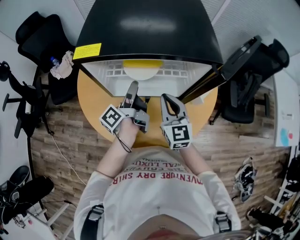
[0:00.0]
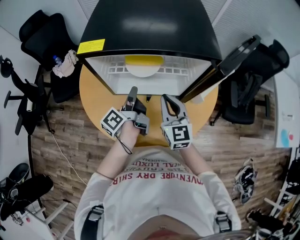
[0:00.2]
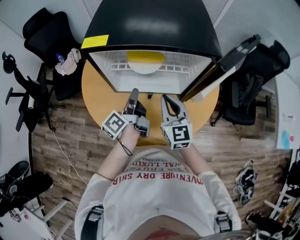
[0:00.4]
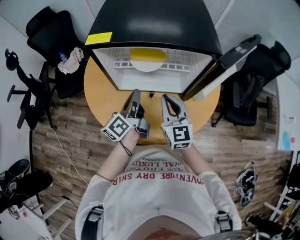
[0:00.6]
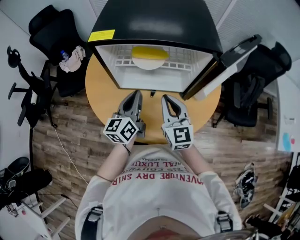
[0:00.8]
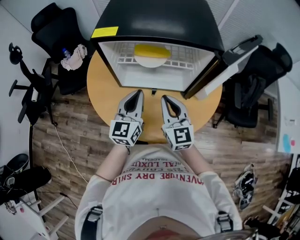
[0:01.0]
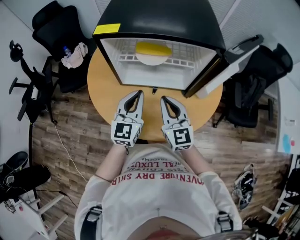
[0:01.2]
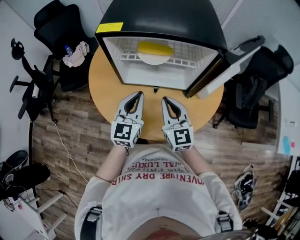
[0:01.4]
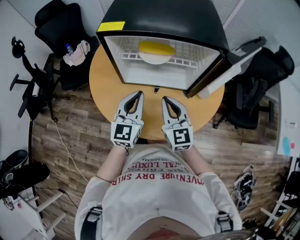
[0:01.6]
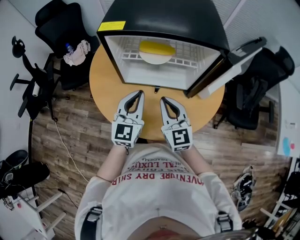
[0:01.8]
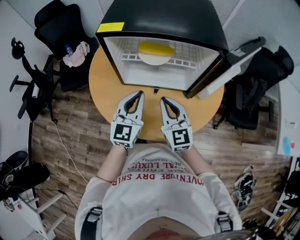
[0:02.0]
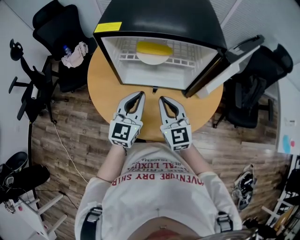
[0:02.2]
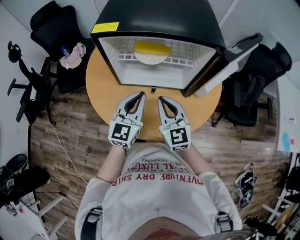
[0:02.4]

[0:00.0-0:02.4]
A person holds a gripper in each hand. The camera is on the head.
0:00.0 to 0:01.2: The right gripper moves some 10 cm.

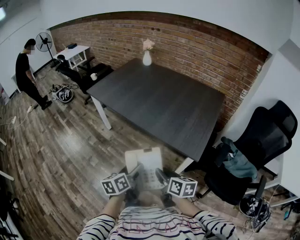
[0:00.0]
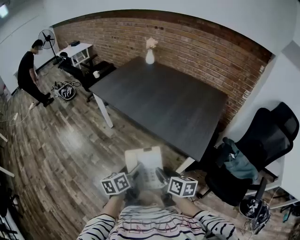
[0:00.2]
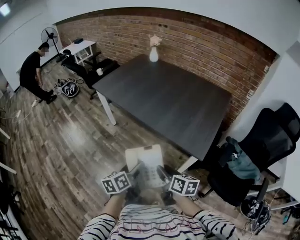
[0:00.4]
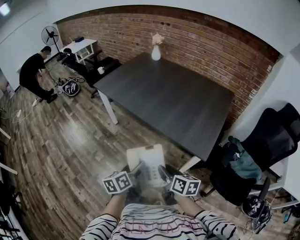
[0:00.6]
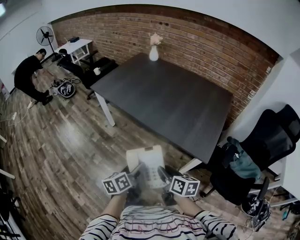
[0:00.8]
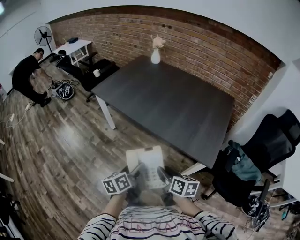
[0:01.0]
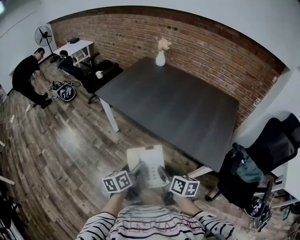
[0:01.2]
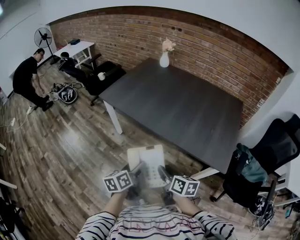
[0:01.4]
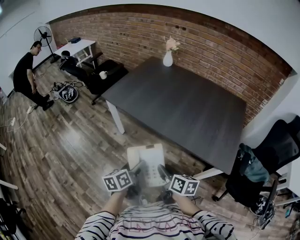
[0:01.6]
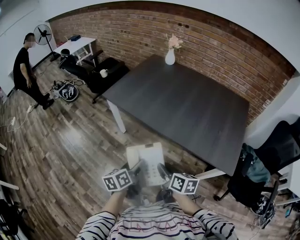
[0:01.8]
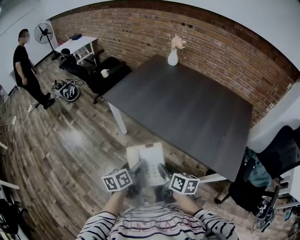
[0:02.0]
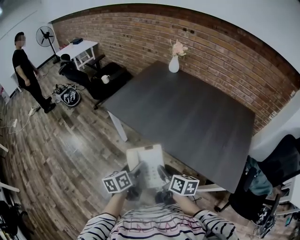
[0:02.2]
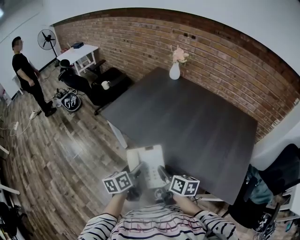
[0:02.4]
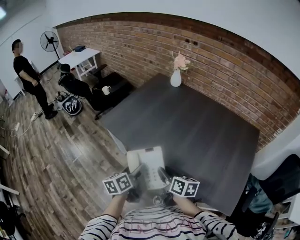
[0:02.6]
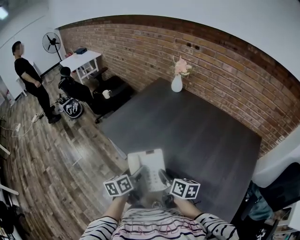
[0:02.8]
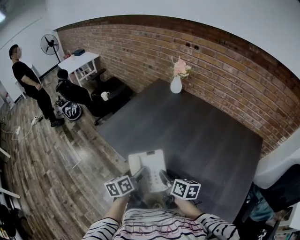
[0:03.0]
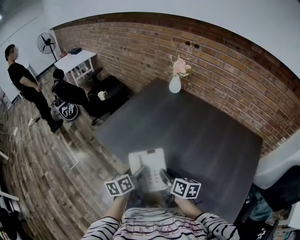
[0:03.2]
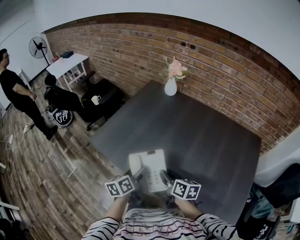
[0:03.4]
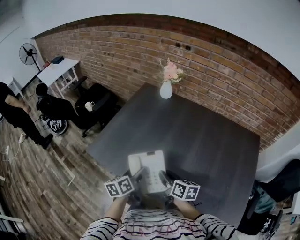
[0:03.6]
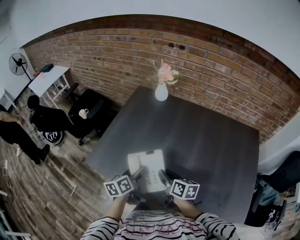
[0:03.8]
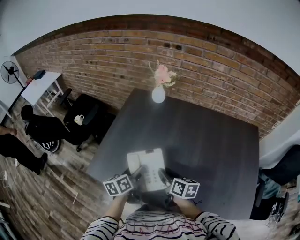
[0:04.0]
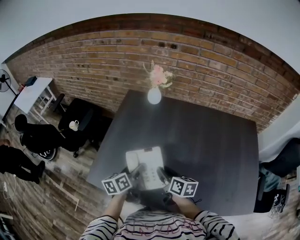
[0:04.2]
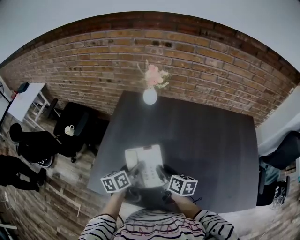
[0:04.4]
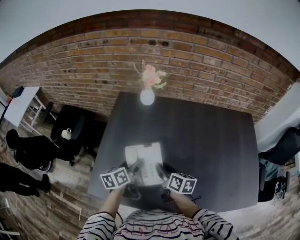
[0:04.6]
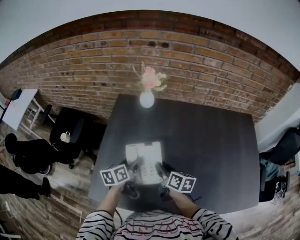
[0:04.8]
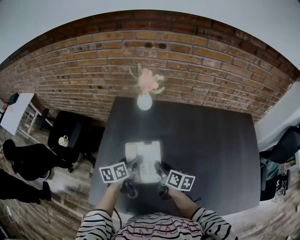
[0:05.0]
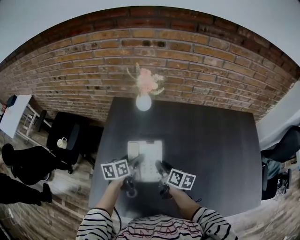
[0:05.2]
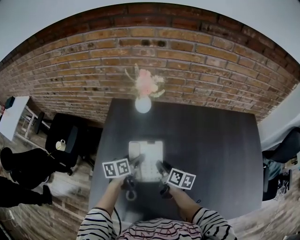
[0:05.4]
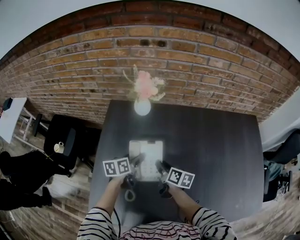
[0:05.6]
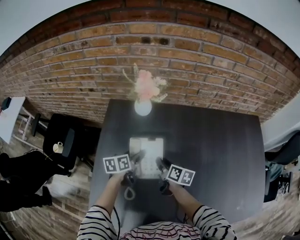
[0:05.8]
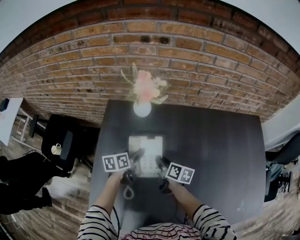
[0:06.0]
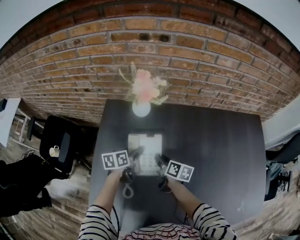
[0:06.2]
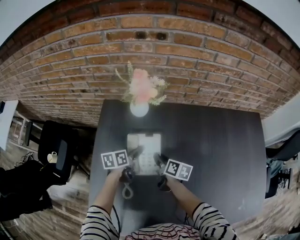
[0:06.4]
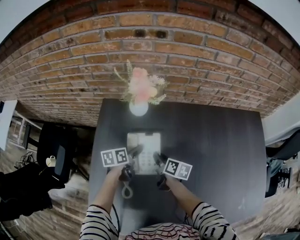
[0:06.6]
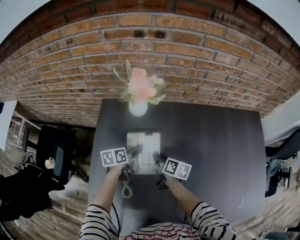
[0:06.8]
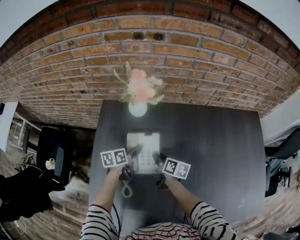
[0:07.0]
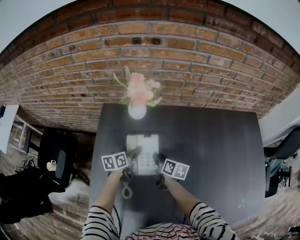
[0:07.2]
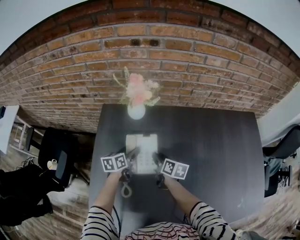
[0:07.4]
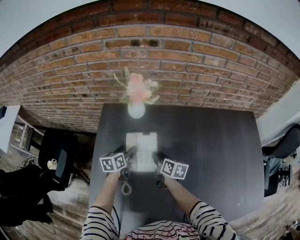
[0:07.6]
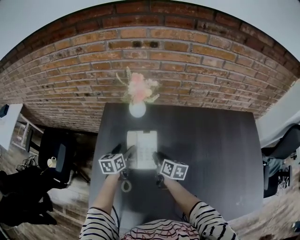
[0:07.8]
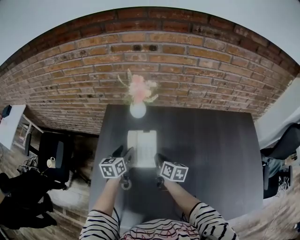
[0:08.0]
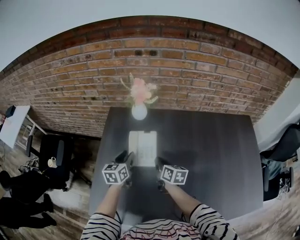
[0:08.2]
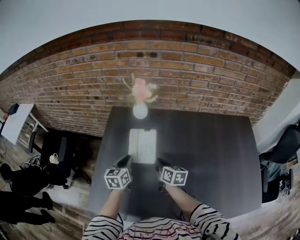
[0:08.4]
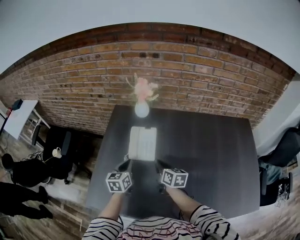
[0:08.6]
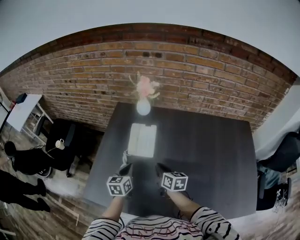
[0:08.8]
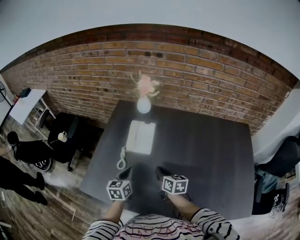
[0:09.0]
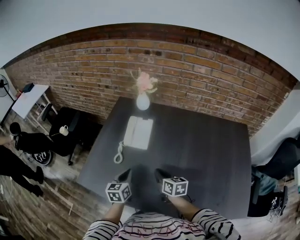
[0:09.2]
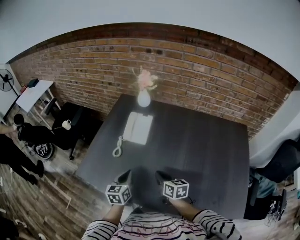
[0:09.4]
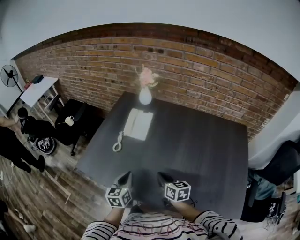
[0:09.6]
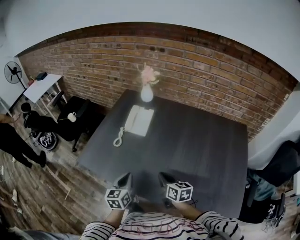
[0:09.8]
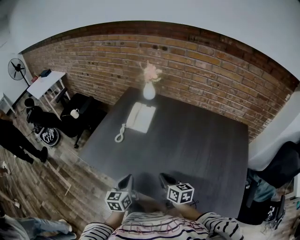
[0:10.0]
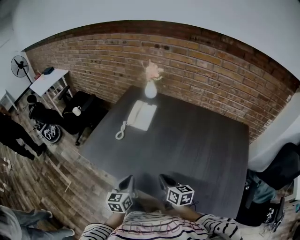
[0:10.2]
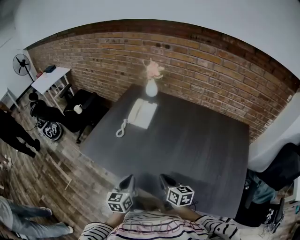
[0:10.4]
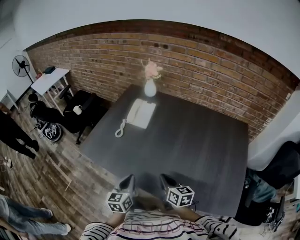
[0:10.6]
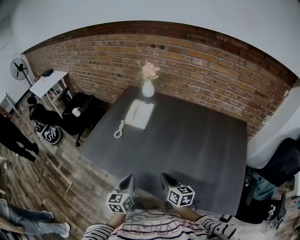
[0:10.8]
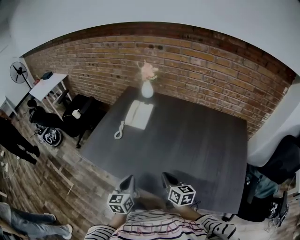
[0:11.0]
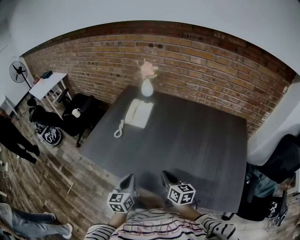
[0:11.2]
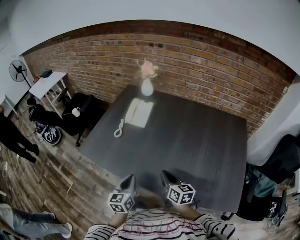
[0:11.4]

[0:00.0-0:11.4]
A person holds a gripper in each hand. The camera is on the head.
0:00.0 to 0:01.4: The two grippers go roughly 25 cm to the left and forward.
0:01.4 to 0:02.8: Both grippers move forward, about 35 cm.
0:02.8 to 0:04.2: The grippers both shift forward by about 30 cm. The left gripper turns by approximately 20 degrees. The right gripper turns by roughly 20 degrees.
0:04.2 to 0:05.6: The left gripper shifts some 25 cm forward, and swivels approximately 20 degrees. Meanwhile the right gripper goes about 25 cm forward and downward.
0:05.6 to 0:07.2: Both grippers travel together forward, roughly 10 cm.
0:07.2 to 0:08.6: The grippers both shift backward and upward by some 20 cm. The right gripper closes; the left gripper turns by approximately 30 degrees, and closes up.
0:08.6 to 0:10.0: Both grippers travel together backward, roughly 35 cm. The right gripper swivels roughly 20 degrees.
0:10.0 to 0:11.4: The right gripper ends up approximately 5 cm from where it was; the left gripper shifts approximately 5 cm backward.

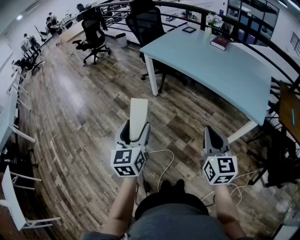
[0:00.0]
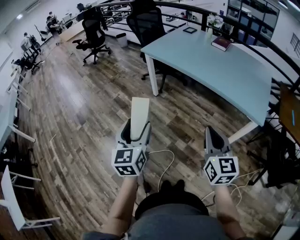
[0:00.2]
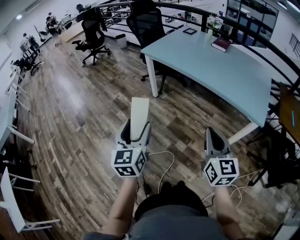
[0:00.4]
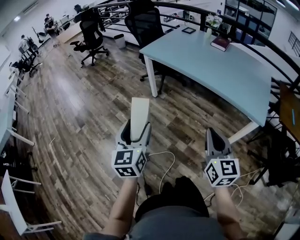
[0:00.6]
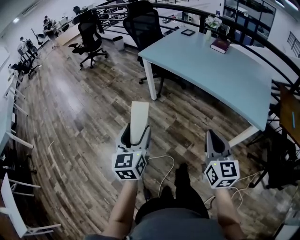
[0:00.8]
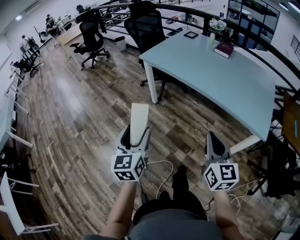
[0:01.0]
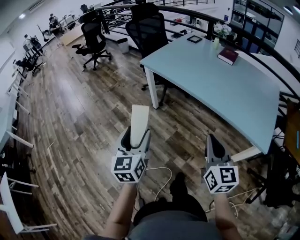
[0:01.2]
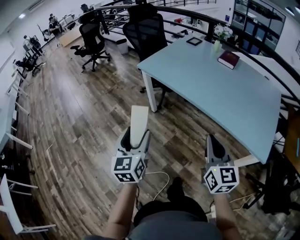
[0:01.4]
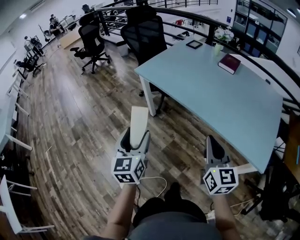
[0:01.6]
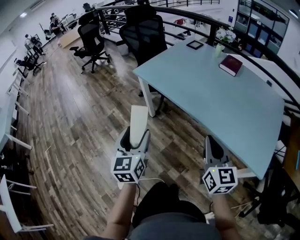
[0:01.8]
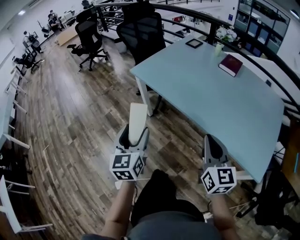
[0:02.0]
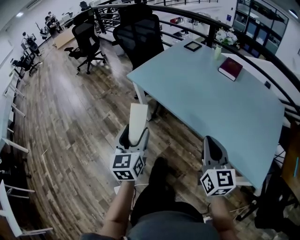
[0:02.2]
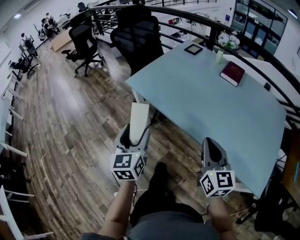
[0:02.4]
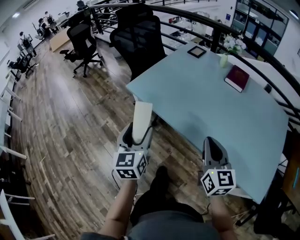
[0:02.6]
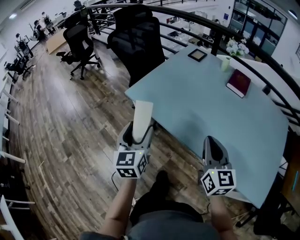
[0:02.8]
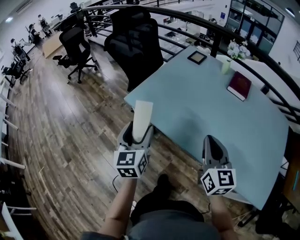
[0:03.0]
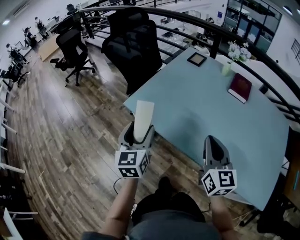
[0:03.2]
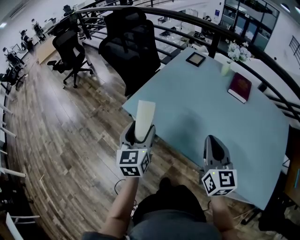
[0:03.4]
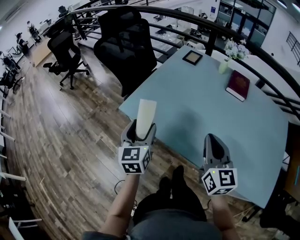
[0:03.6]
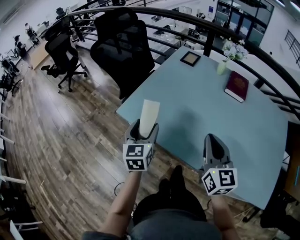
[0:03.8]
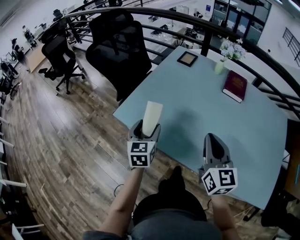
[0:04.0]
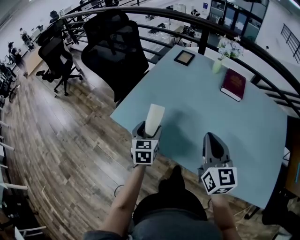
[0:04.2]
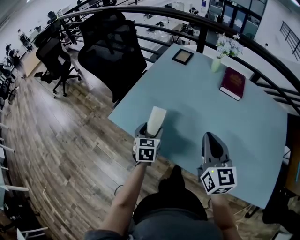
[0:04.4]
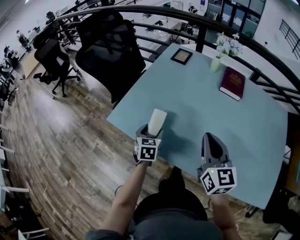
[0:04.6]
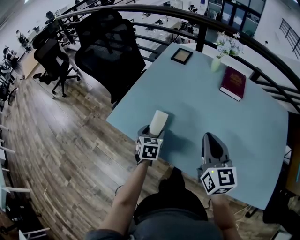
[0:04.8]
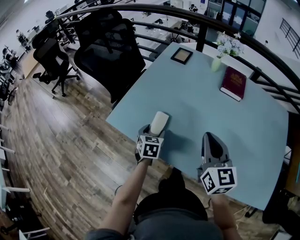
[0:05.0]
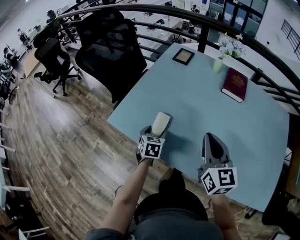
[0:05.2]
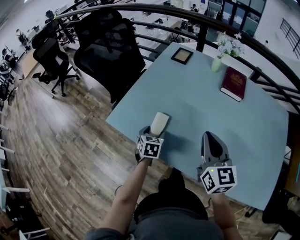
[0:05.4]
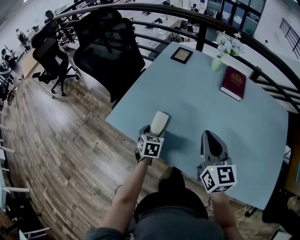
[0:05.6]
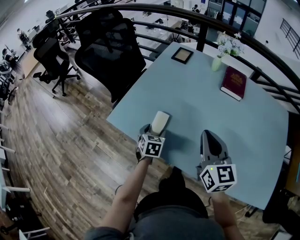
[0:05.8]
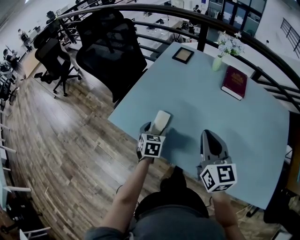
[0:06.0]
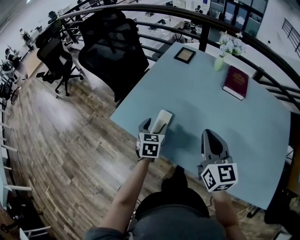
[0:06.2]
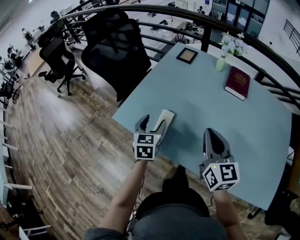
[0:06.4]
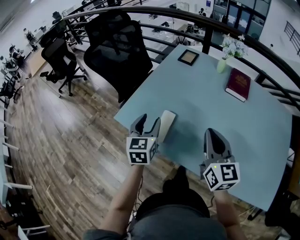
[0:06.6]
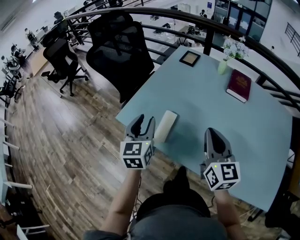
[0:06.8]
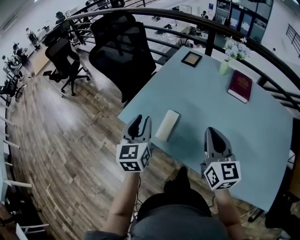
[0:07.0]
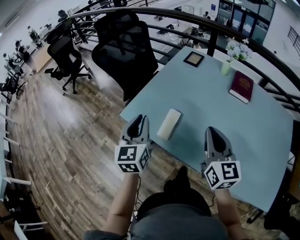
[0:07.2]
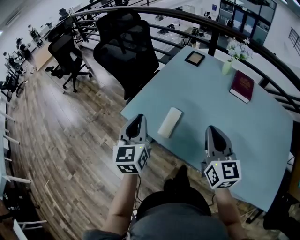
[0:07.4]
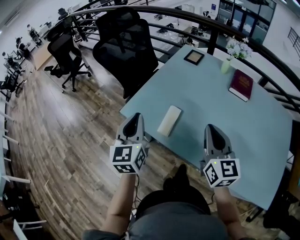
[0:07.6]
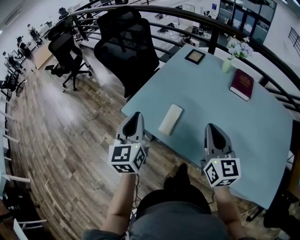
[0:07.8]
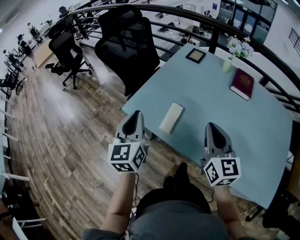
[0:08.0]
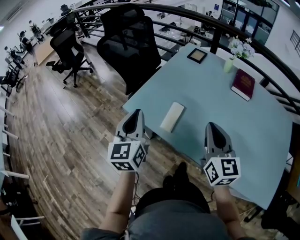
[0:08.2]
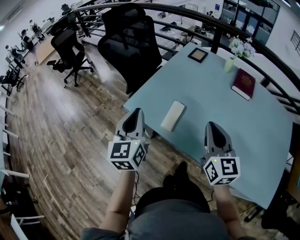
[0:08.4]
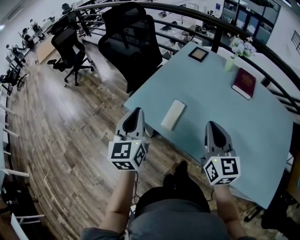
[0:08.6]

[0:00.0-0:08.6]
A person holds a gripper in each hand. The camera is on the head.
0:00.0 to 0:01.4: Both grippers move forward, some 20 cm.
0:01.4 to 0:02.8: The grippers both shift forward by about 30 cm.
0:02.8 to 0:04.4: The left gripper shifts some 25 cm forward and downward, and swivels approximately 30 degrees. The right gripper is displaced forward by approximately 15 cm.
0:04.4 to 0:05.8: The left gripper moves downward, approximately 5 cm.
0:05.8 to 0:07.2: The left gripper heads upward and to the left, covering approximately 25 cm, points its fingers roughly 40 degrees further upward, and closes.
0:07.2 to 0:08.6: The left gripper ends up some 5 cm from where it was.

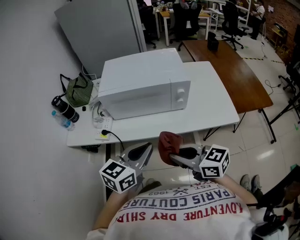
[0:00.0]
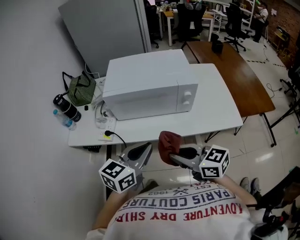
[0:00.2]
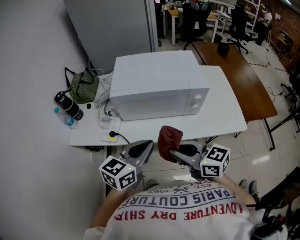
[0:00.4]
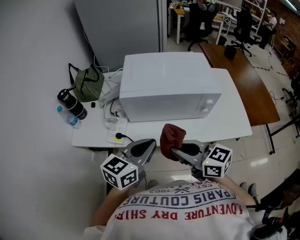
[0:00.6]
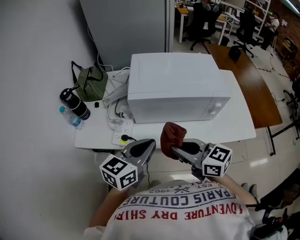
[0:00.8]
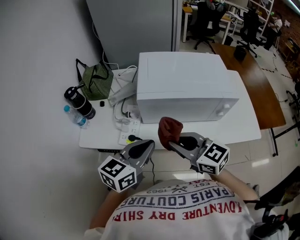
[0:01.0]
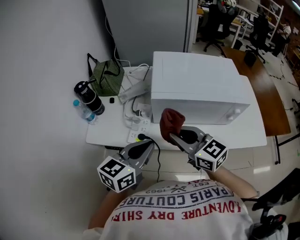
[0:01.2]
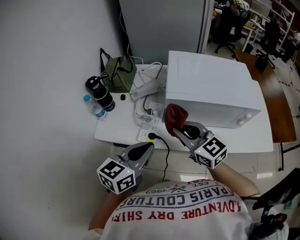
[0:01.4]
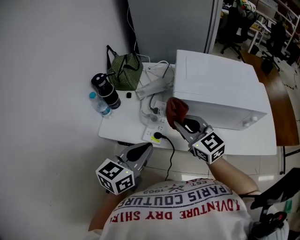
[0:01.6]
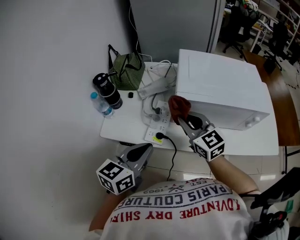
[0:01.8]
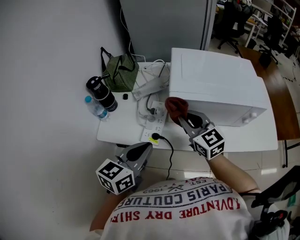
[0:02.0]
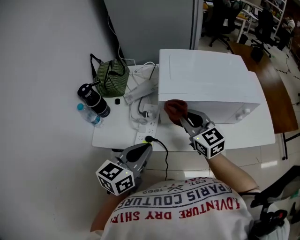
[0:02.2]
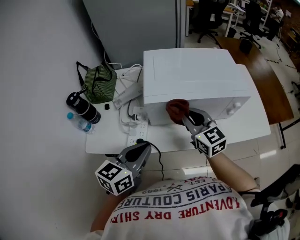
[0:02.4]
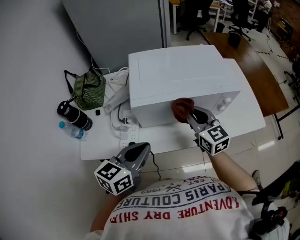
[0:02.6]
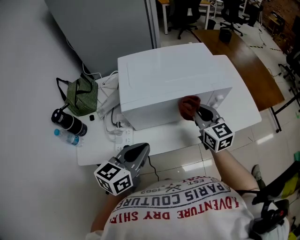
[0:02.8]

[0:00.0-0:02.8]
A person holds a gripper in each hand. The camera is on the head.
0:00.0 to 0:01.4: The right gripper shifts approximately 35 cm forward and to the left, and rotates approximately 20 degrees; the left gripper shifts some 30 cm to the left and forward.
0:01.4 to 0:02.8: The right gripper moves about 25 cm, and swivels some 40 degrees; the left gripper ends up about 10 cm from where it was.
